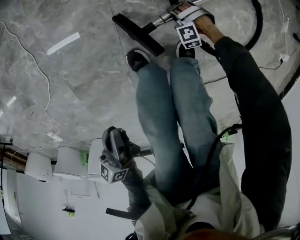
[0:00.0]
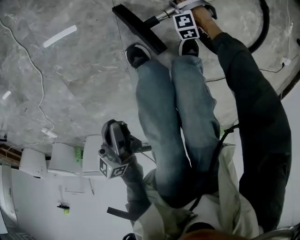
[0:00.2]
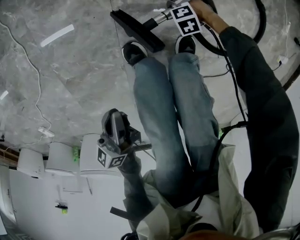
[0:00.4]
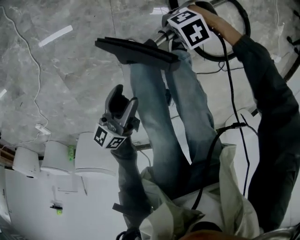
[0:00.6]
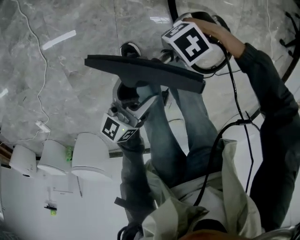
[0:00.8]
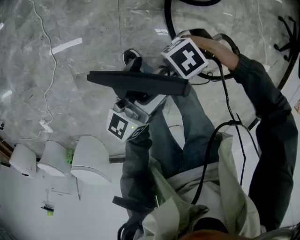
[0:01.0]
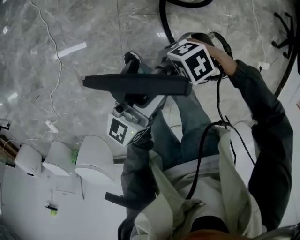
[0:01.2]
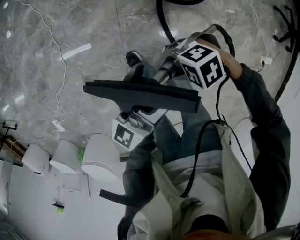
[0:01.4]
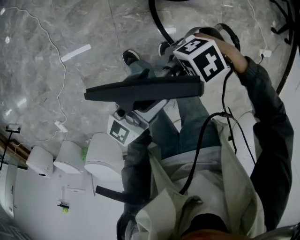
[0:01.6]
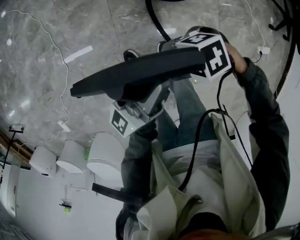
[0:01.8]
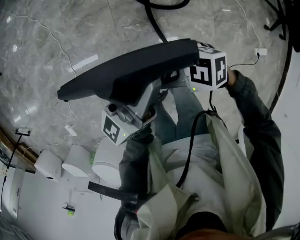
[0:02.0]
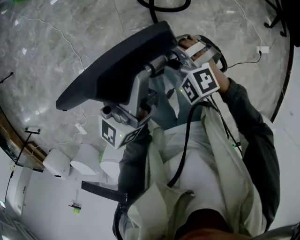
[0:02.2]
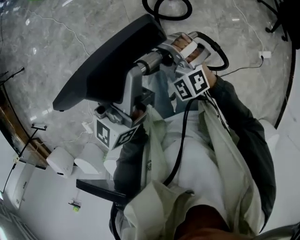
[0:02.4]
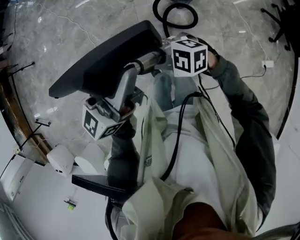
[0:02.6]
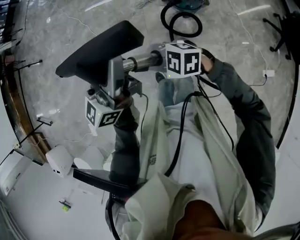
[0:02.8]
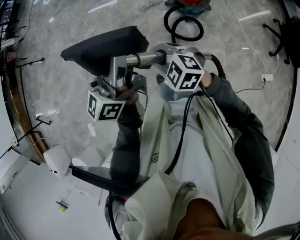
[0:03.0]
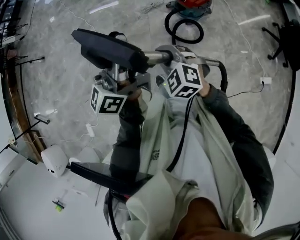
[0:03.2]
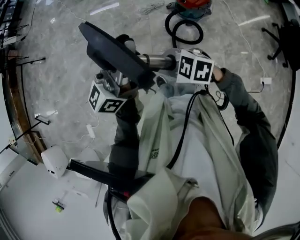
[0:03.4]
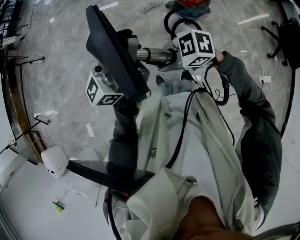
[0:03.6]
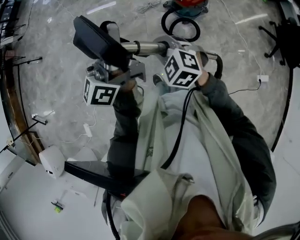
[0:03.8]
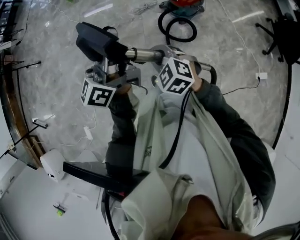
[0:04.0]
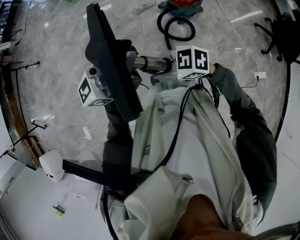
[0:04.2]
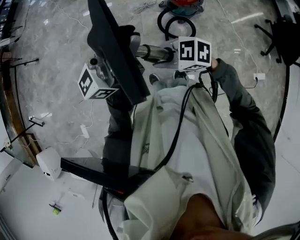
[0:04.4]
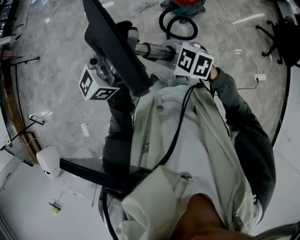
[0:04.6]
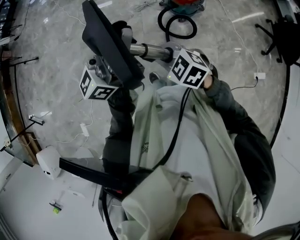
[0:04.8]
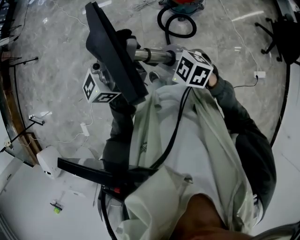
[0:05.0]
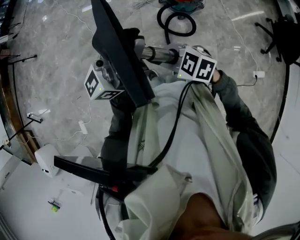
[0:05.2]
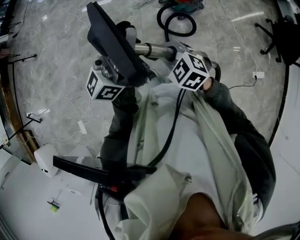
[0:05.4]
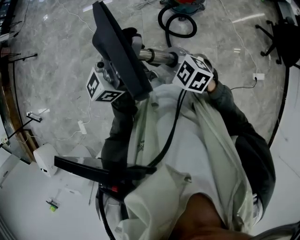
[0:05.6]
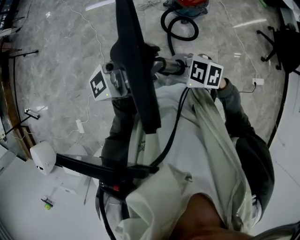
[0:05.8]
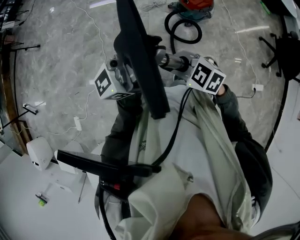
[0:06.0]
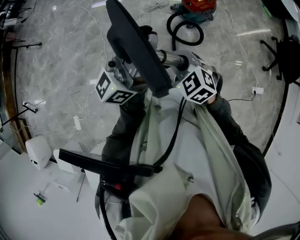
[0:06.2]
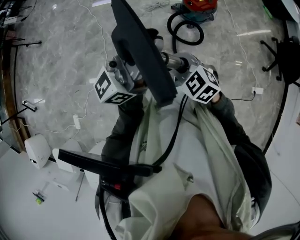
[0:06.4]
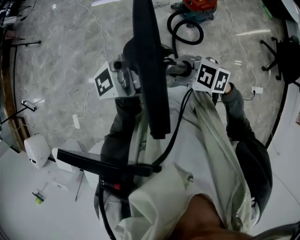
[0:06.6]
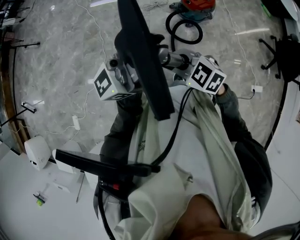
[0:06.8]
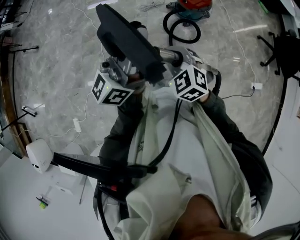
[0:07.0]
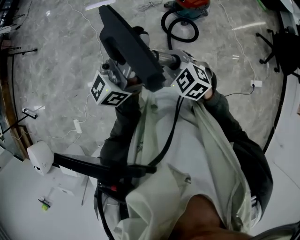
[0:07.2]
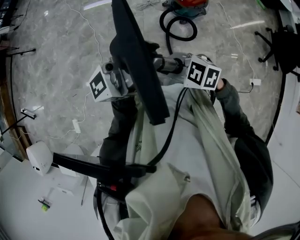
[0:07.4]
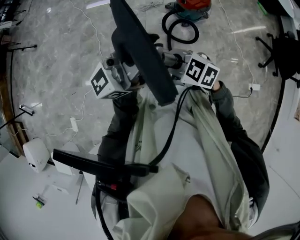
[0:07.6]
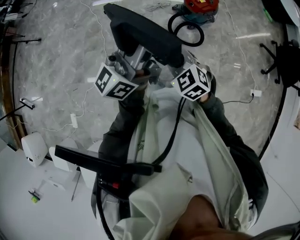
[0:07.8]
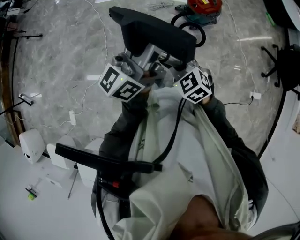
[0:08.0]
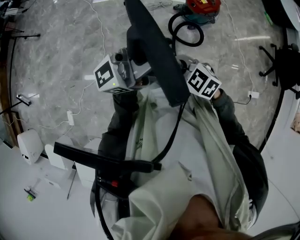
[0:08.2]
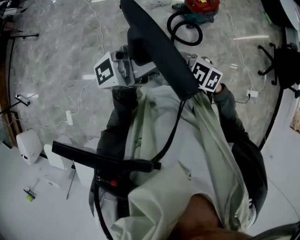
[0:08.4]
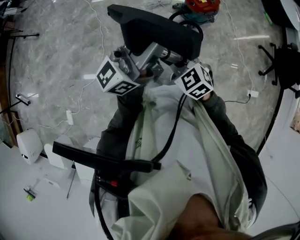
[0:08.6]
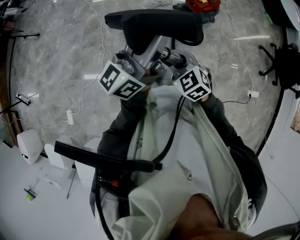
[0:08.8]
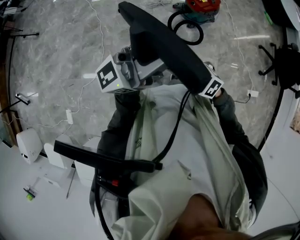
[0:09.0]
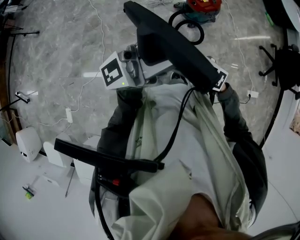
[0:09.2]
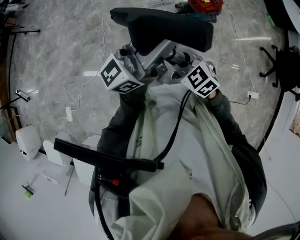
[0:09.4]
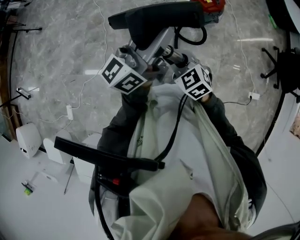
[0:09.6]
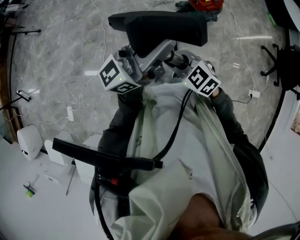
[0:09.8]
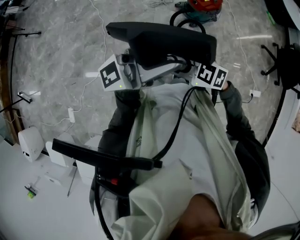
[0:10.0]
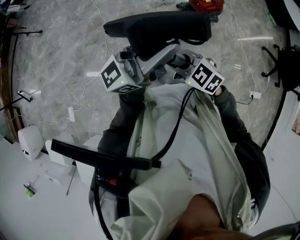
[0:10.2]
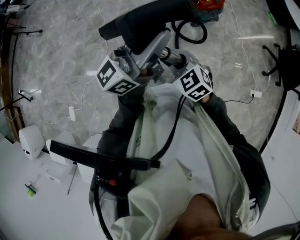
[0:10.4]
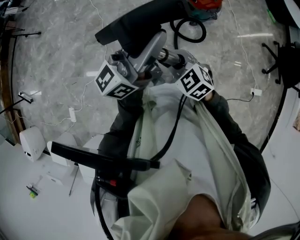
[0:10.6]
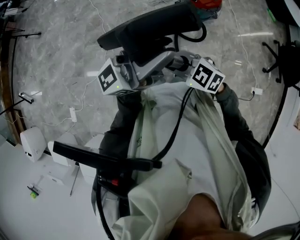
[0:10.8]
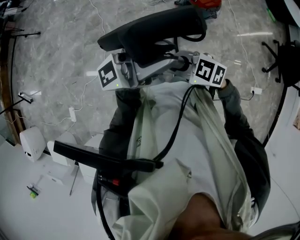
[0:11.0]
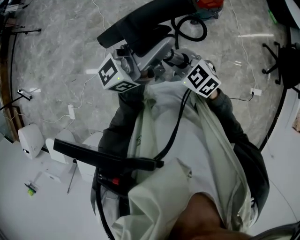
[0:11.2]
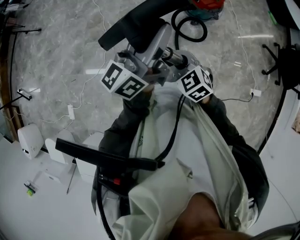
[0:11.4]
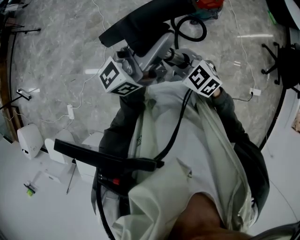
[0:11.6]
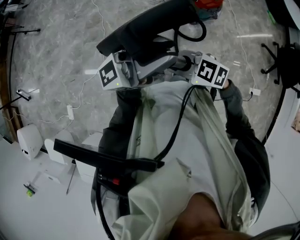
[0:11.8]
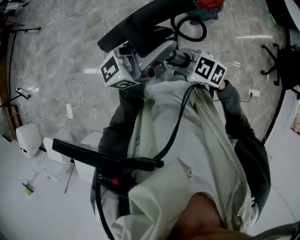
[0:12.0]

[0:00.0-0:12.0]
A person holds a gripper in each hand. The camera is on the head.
0:00.0 to 0:01.6: The right gripper moves upward, approximately 50 cm, and angles its fingers upward, by approximately 40 degrees; the left gripper moves upward, about 30 cm, tilts its fingers about 40 degrees upward, and opens.
0:01.6 to 0:03.0: The grippers both shift upward by some 35 cm. The left gripper closes up. The right gripper turns by some 70 degrees, and closes.
0:03.0 to 0:04.4: The right gripper ends up approximately 5 cm from where it was, and changes its angle by approximately 30 degrees. Meanwhile the left gripper moves up and down over some 5 cm, changing direction 2 times, and rotates roughly 30 degrees.
0:04.4 to 0:06.0: The left gripper shifts by roughly 5 cm.
0:09.0 to 0:10.4: The left gripper ends up some 5 cm from where it was, and turns by some 20 degrees.
0:10.4 to 0:12.0: The right gripper swivels approximately 30 degrees.

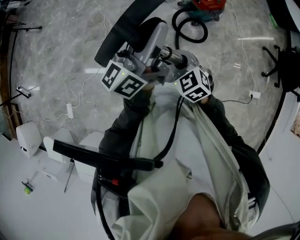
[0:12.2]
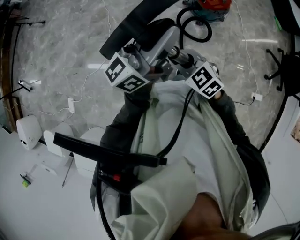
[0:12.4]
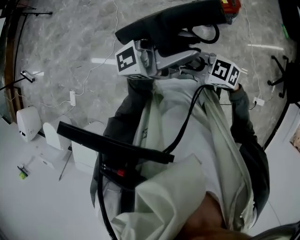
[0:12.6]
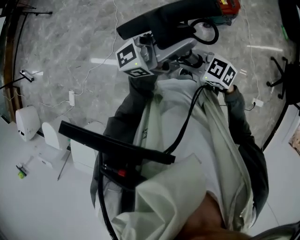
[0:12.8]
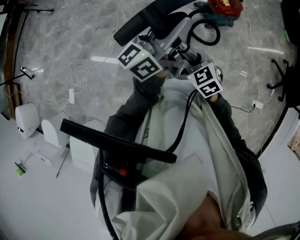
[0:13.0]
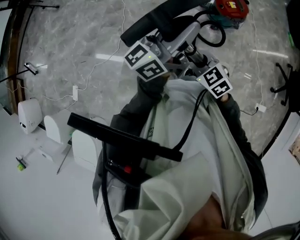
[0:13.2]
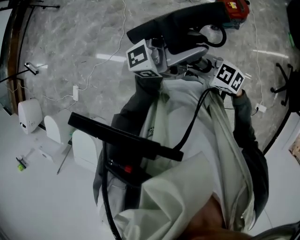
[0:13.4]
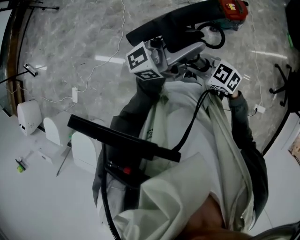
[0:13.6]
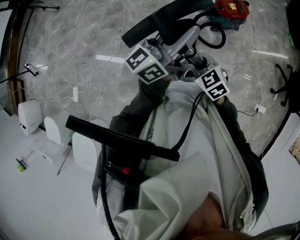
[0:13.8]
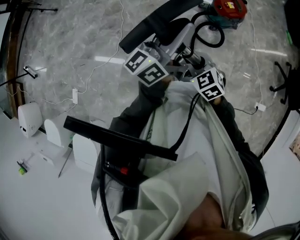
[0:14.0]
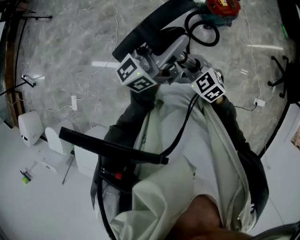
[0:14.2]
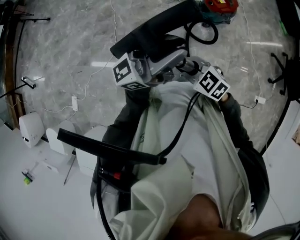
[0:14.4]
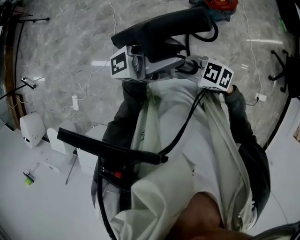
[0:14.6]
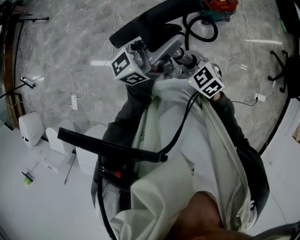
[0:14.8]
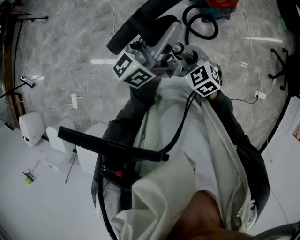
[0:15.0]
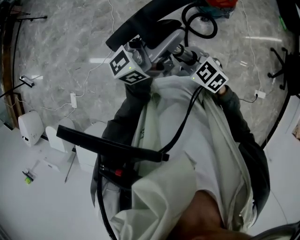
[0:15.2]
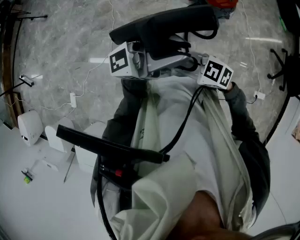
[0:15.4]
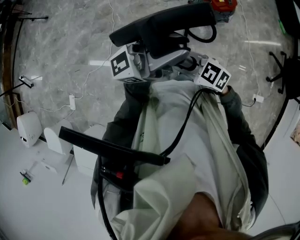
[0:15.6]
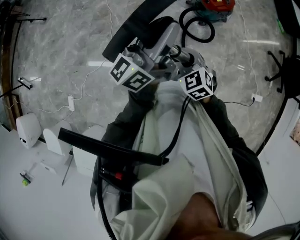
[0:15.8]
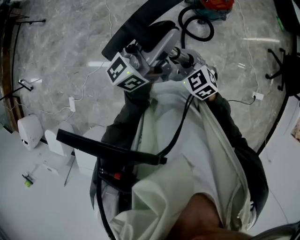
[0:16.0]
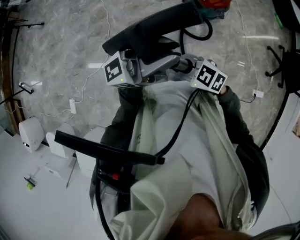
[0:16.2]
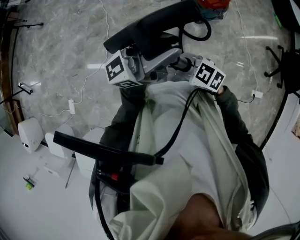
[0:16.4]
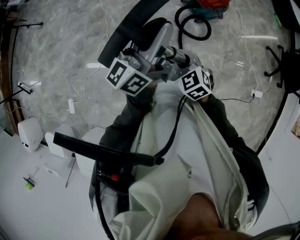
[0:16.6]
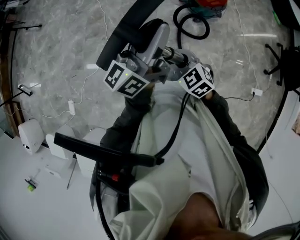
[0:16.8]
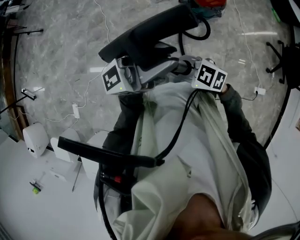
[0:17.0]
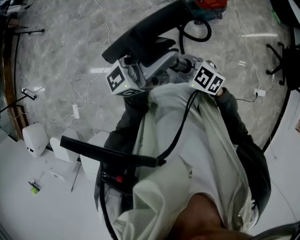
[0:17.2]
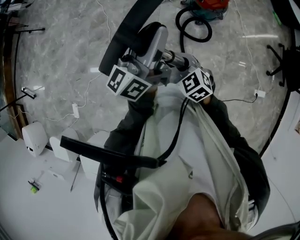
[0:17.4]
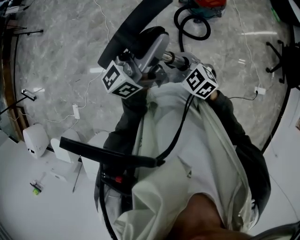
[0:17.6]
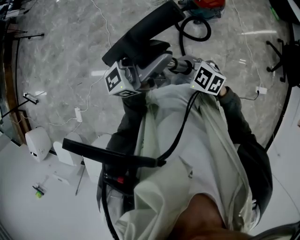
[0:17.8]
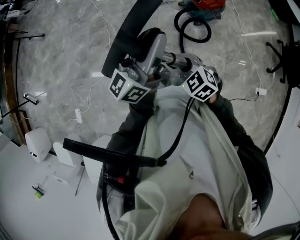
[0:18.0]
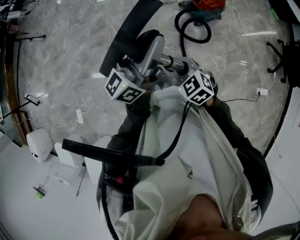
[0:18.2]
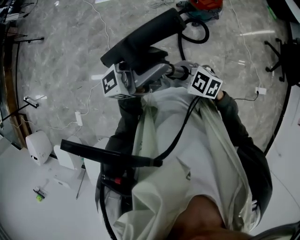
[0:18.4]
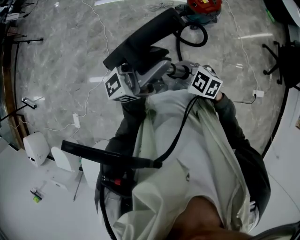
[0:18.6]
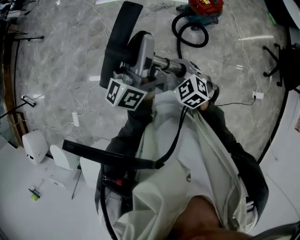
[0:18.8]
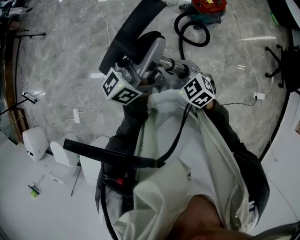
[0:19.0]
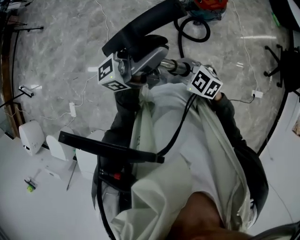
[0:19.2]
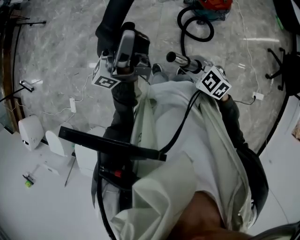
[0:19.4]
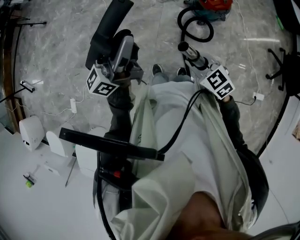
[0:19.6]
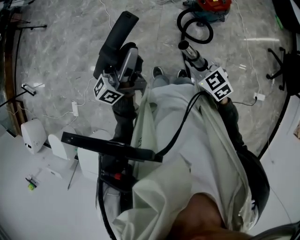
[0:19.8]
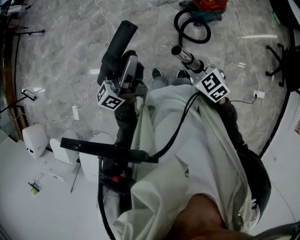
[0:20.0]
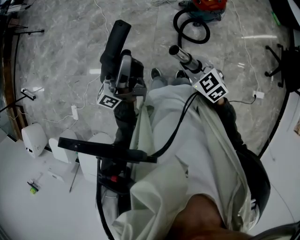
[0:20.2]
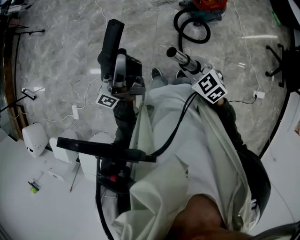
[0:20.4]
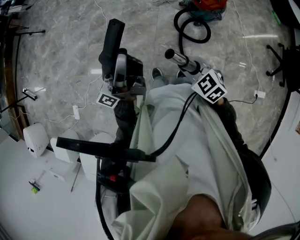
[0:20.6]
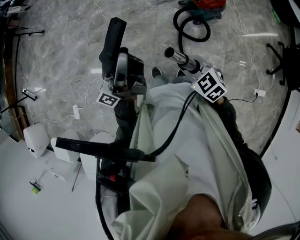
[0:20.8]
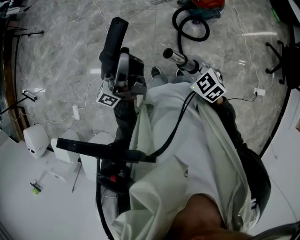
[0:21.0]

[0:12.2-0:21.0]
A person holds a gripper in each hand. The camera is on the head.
0:12.2 to 0:13.6: The right gripper changes place by roughly 5 cm, and turns by approximately 40 degrees; the left gripper ends up about 5 cm from where it was, and swivels approximately 30 degrees.
0:15.2 to 0:16.6: The left gripper turns by approximately 20 degrees. The right gripper changes its angle by about 20 degrees.
0:18.0 to 0:19.6: The left gripper shifts by approximately 10 cm. The right gripper changes place by approximately 5 cm.
0:19.6 to 0:21.0: The left gripper changes its angle by about 20 degrees.

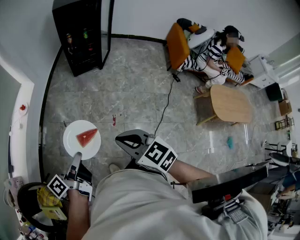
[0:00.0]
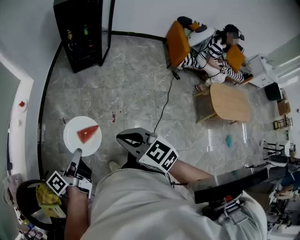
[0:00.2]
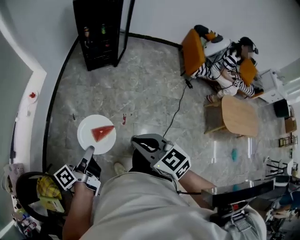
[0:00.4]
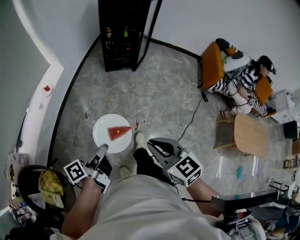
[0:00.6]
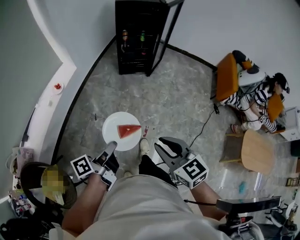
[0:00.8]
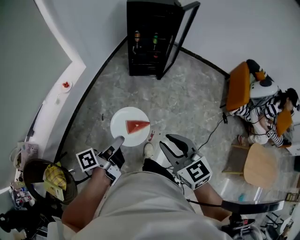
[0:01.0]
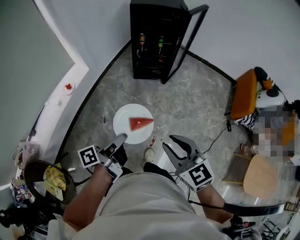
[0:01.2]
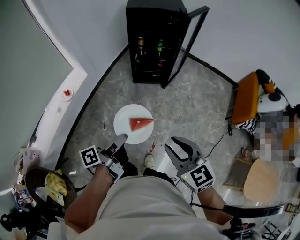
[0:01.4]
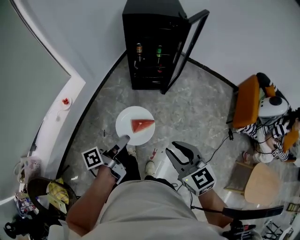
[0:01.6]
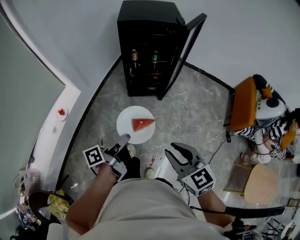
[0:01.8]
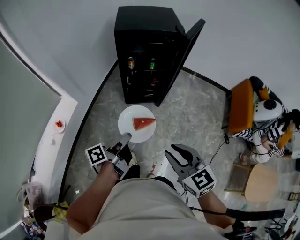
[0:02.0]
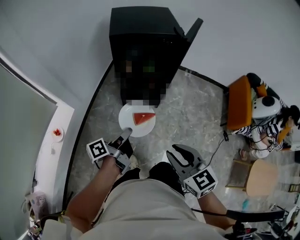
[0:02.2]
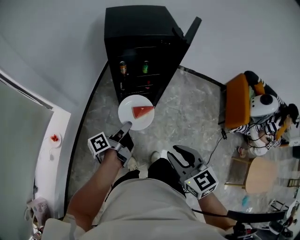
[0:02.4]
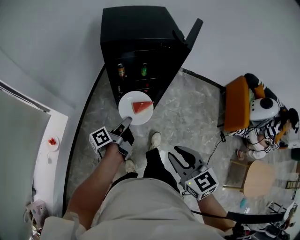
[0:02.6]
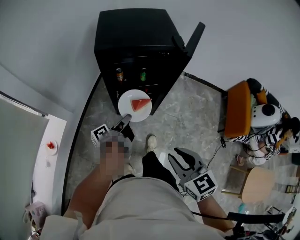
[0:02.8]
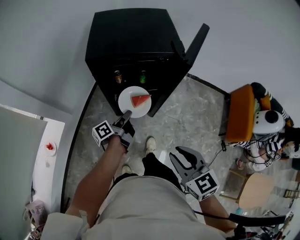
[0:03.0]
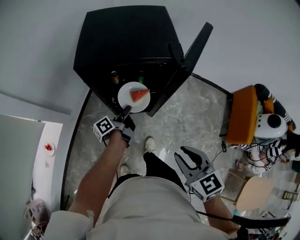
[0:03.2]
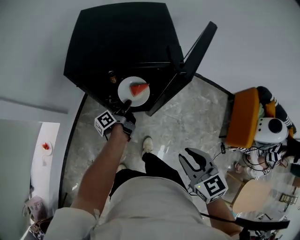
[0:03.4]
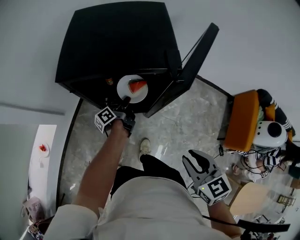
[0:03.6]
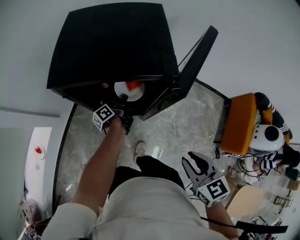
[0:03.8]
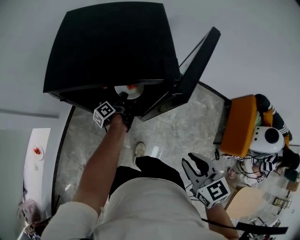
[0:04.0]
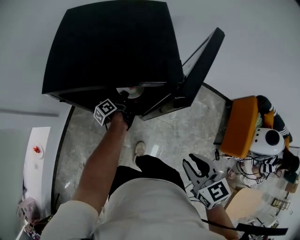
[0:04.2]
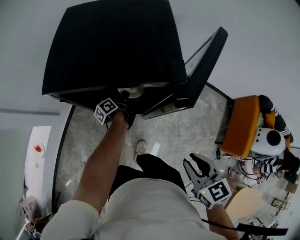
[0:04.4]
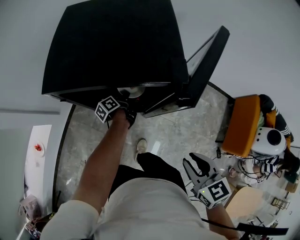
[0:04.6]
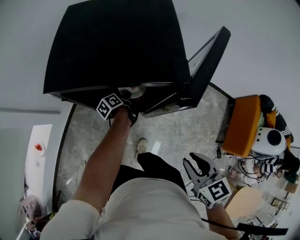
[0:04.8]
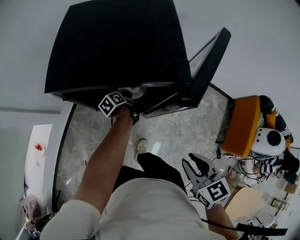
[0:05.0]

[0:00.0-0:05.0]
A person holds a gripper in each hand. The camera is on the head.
0:00.0 to 0:01.6: The right gripper moves roughly 40 cm, and opens.
0:01.6 to 0:03.4: The right gripper shifts by about 40 cm.
0:03.4 to 0:05.0: The right gripper shifts by about 10 cm.
